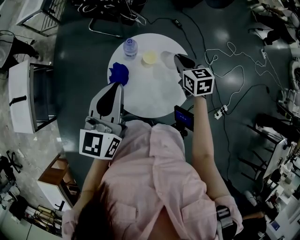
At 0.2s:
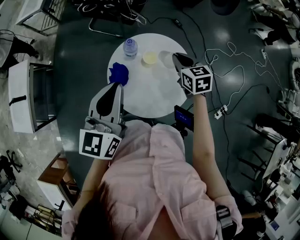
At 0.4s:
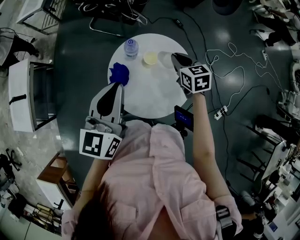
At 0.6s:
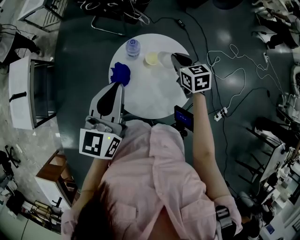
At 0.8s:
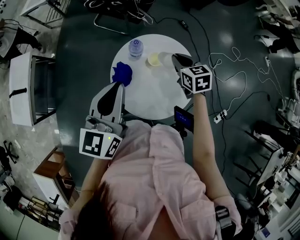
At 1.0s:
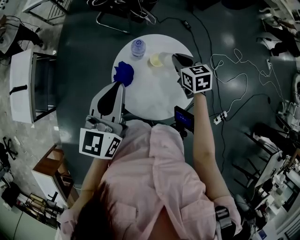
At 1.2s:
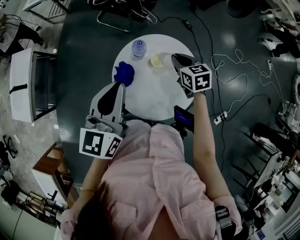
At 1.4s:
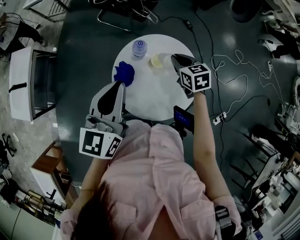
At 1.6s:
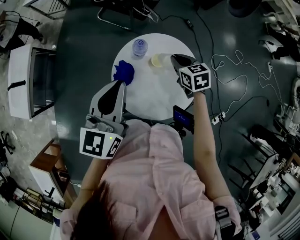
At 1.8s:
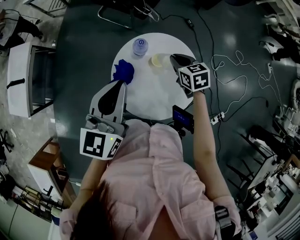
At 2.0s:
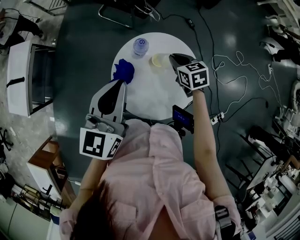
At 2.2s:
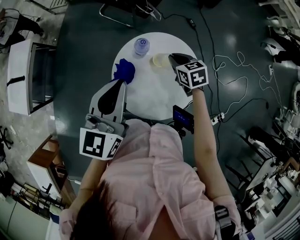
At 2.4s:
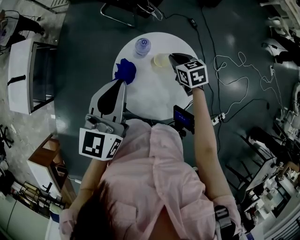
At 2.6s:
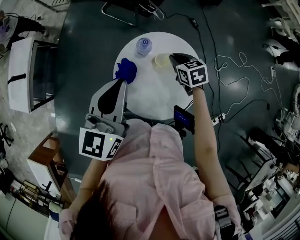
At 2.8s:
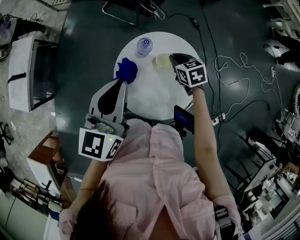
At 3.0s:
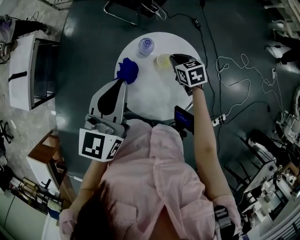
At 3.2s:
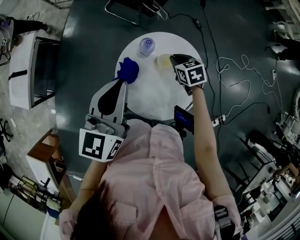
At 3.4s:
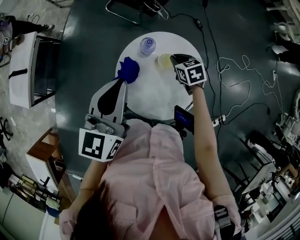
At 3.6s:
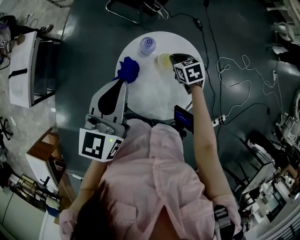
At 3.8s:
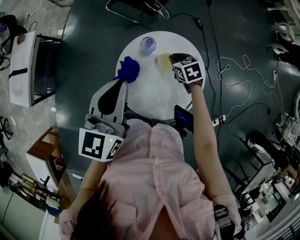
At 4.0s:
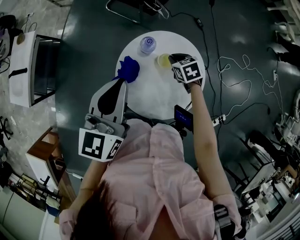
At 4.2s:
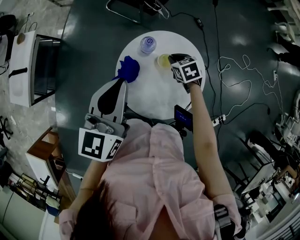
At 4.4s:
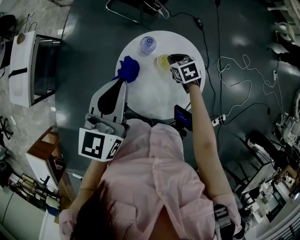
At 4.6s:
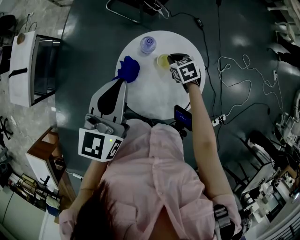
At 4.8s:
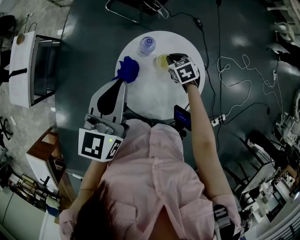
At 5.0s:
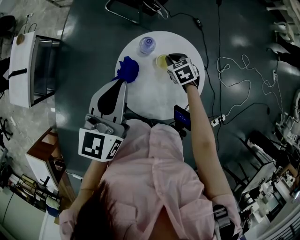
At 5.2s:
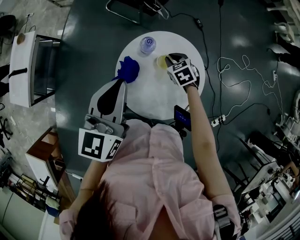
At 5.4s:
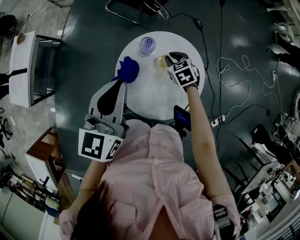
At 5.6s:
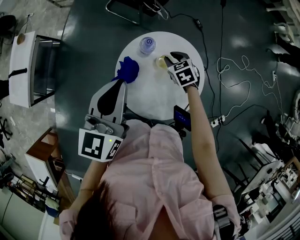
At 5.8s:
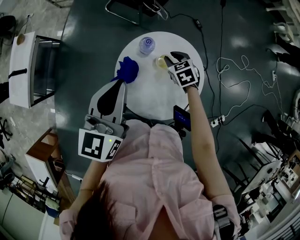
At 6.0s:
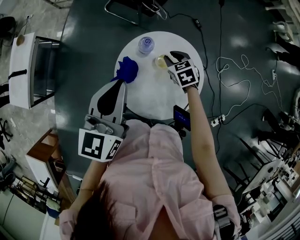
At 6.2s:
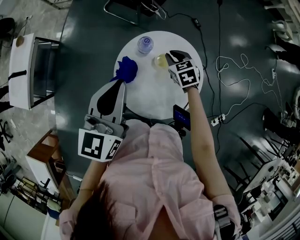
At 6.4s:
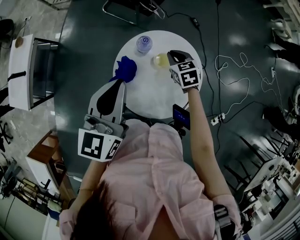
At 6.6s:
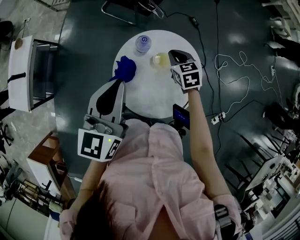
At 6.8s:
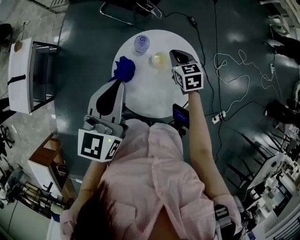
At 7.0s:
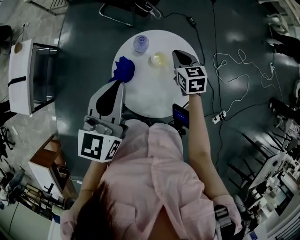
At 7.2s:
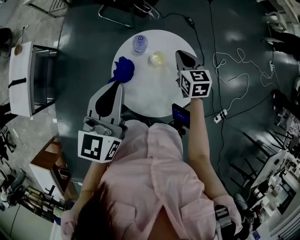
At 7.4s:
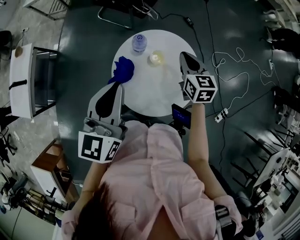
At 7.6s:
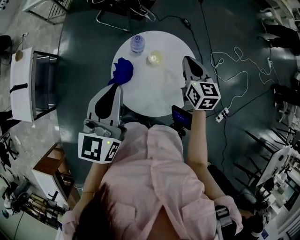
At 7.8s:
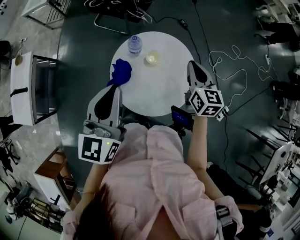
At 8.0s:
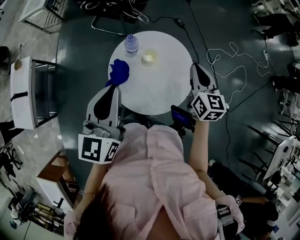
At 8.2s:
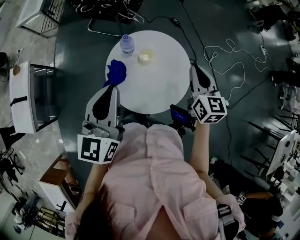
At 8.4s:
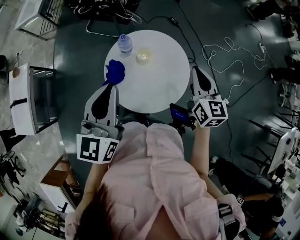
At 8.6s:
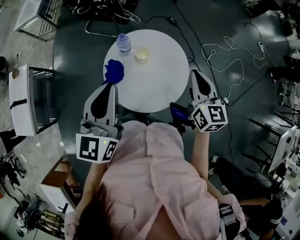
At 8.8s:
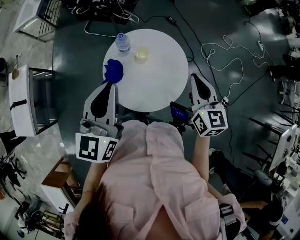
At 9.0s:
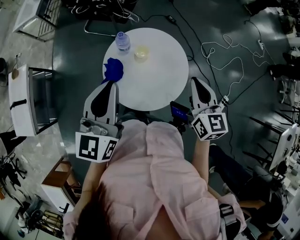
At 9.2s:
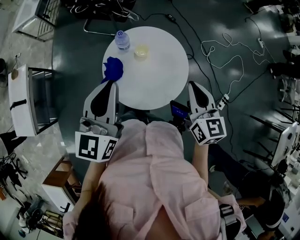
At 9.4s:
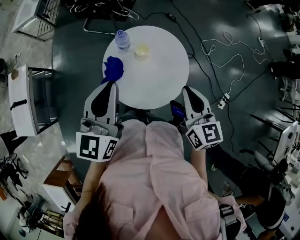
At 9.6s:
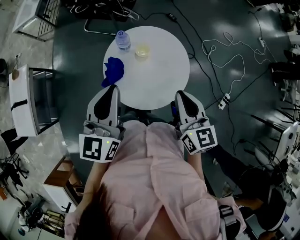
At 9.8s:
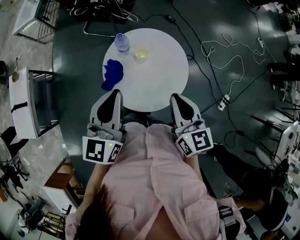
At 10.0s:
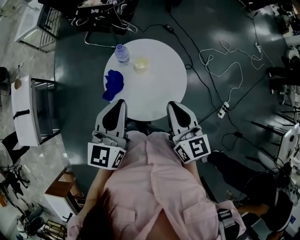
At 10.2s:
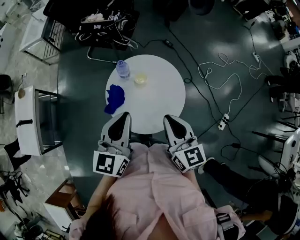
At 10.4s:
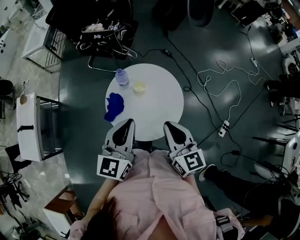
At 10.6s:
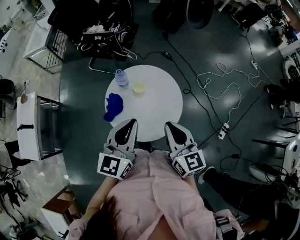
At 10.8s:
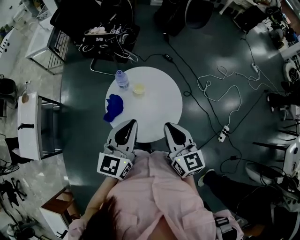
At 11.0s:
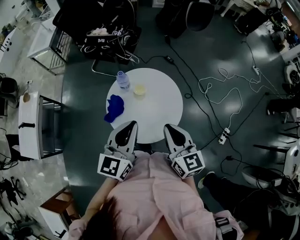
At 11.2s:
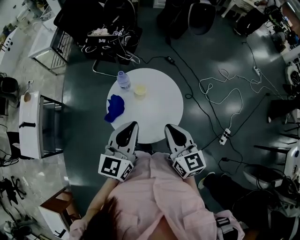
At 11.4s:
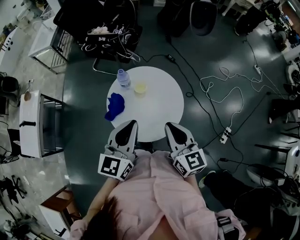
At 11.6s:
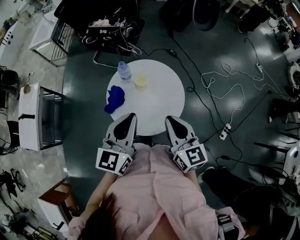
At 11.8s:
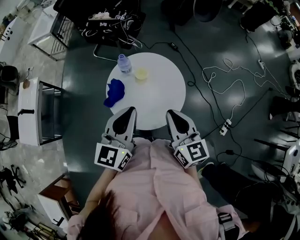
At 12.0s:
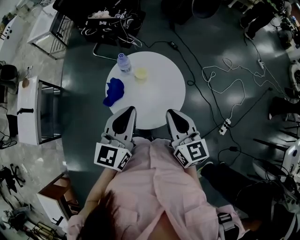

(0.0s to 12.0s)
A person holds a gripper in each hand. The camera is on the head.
0.0s - 1.6s: The right gripper heads downward, covering approximately 5 cm.
1.6s - 3.0s: The right gripper changes place by approximately 5 cm.
3.0s - 6.0s: The grippers move only a little.
6.0s - 7.6s: The right gripper moves upward, to the right and backward, about 20 cm, and swivels roughly 40 degrees.
7.6s - 9.0s: The right gripper travels backward, upward and to the right by some 15 cm.
9.0s - 10.4s: The left gripper moves to the right, about 5 cm. Meanwhile the right gripper is displaced to the left and backward by roughly 10 cm.
10.4s - 12.0s: The grippers stay close to where they were, moving slightly.

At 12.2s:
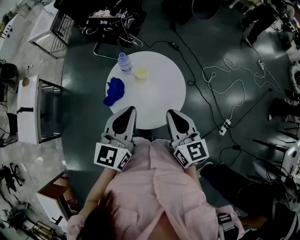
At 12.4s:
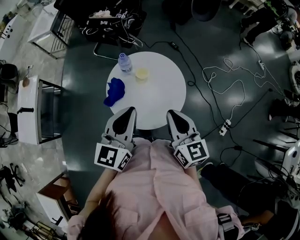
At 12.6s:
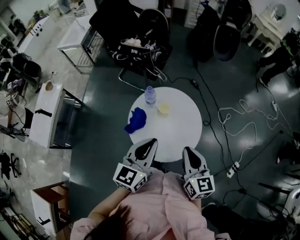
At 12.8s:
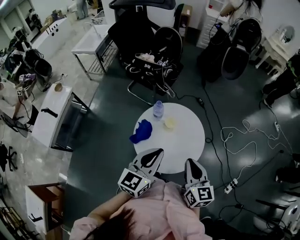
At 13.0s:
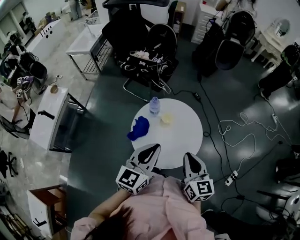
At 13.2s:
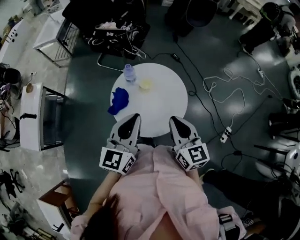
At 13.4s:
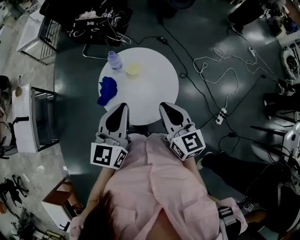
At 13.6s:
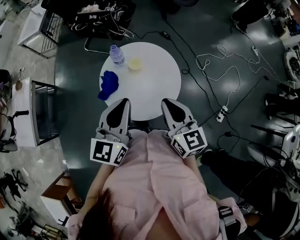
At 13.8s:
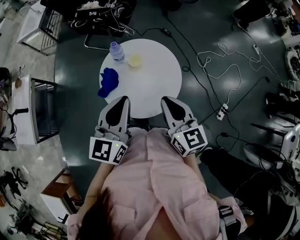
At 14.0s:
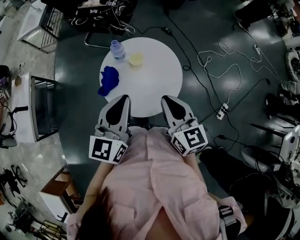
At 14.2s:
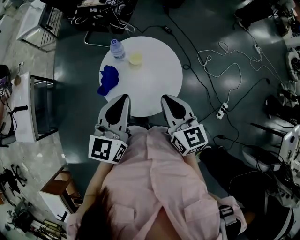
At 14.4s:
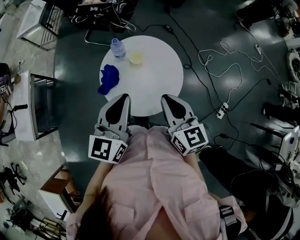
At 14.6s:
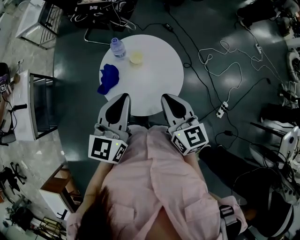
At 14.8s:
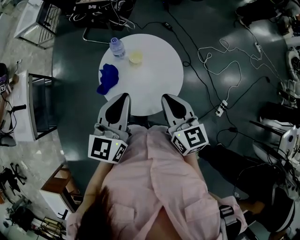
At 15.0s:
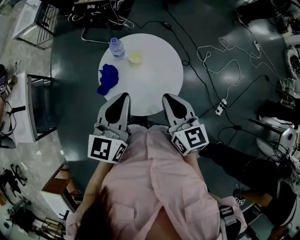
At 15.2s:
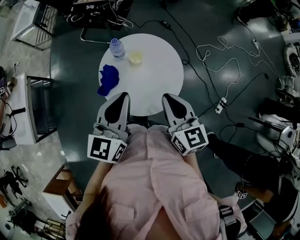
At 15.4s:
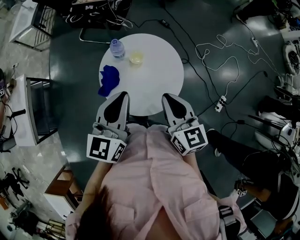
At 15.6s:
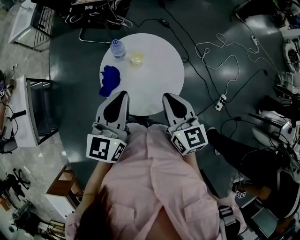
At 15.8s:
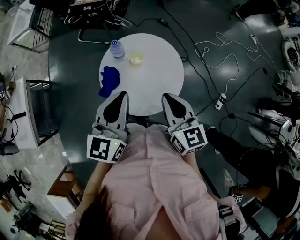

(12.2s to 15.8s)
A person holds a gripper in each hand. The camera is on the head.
12.2s - 15.8s: The grippers move only a little.

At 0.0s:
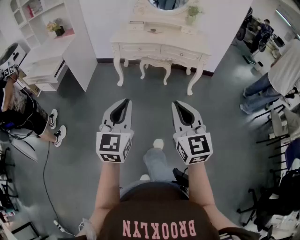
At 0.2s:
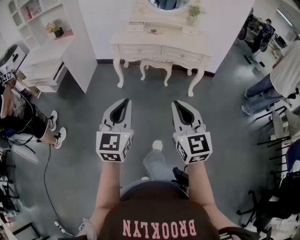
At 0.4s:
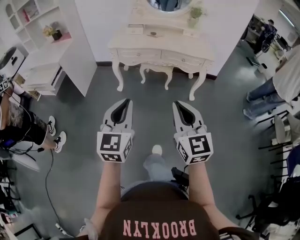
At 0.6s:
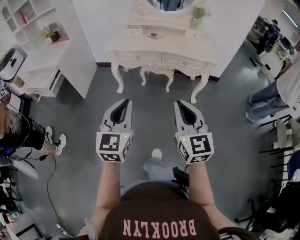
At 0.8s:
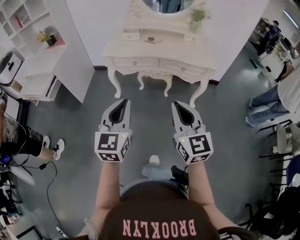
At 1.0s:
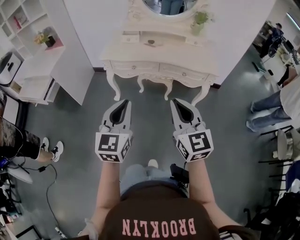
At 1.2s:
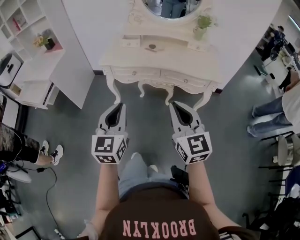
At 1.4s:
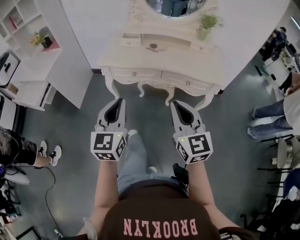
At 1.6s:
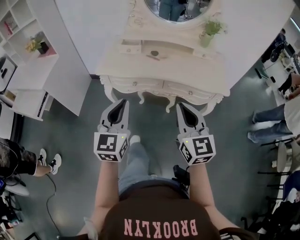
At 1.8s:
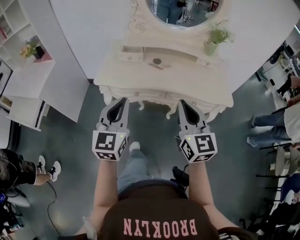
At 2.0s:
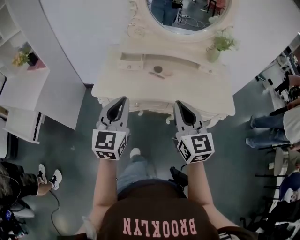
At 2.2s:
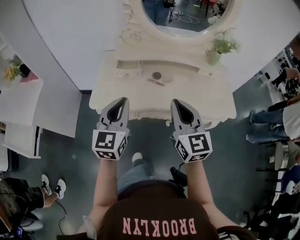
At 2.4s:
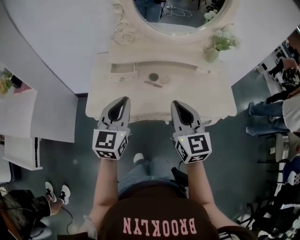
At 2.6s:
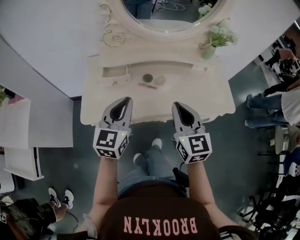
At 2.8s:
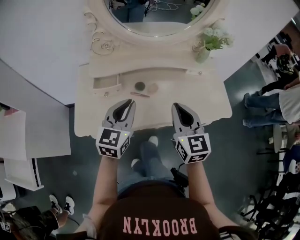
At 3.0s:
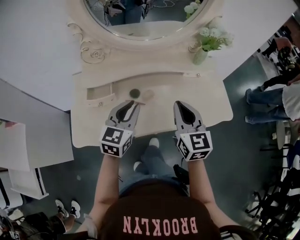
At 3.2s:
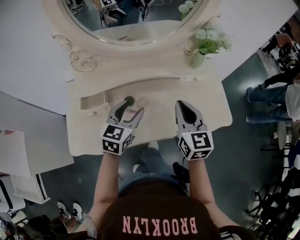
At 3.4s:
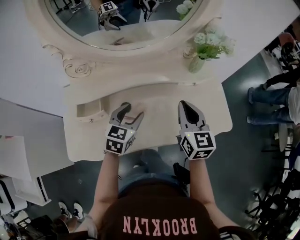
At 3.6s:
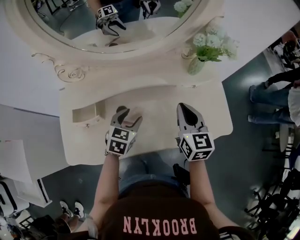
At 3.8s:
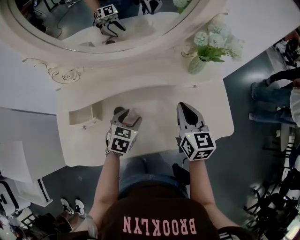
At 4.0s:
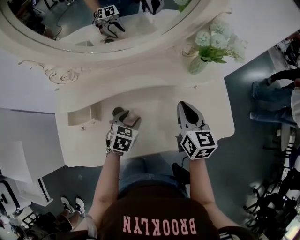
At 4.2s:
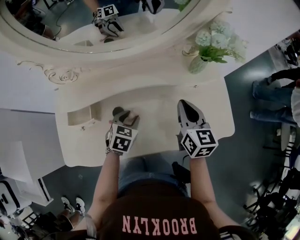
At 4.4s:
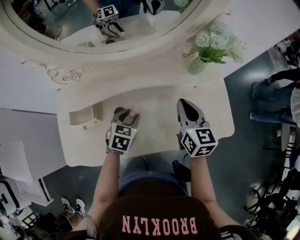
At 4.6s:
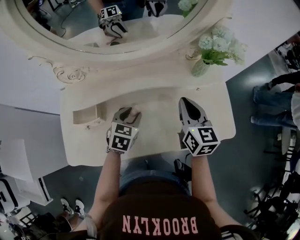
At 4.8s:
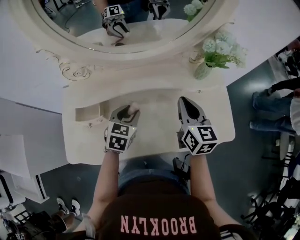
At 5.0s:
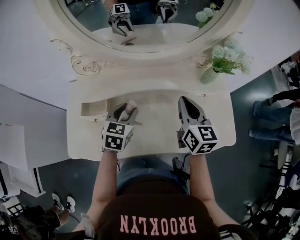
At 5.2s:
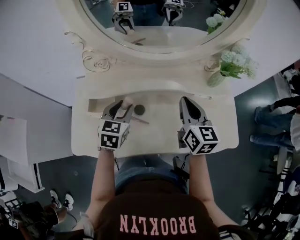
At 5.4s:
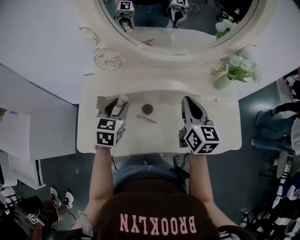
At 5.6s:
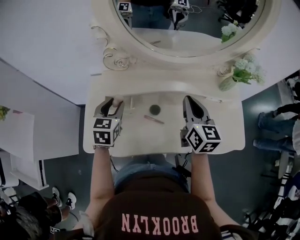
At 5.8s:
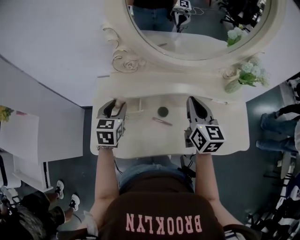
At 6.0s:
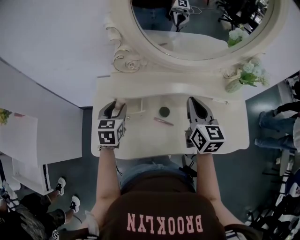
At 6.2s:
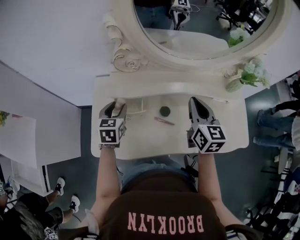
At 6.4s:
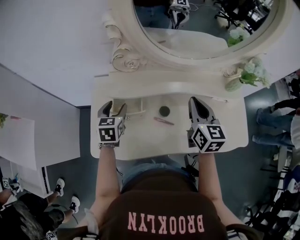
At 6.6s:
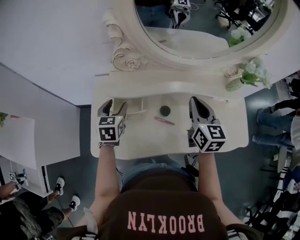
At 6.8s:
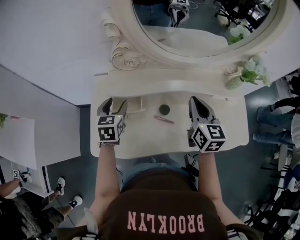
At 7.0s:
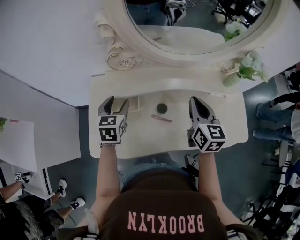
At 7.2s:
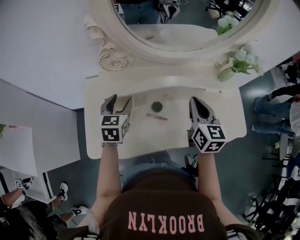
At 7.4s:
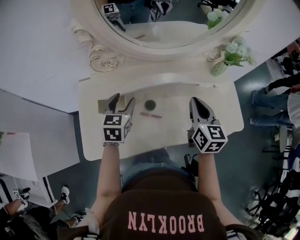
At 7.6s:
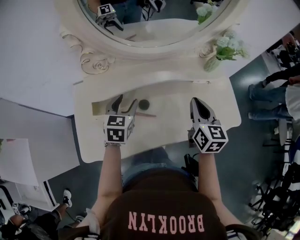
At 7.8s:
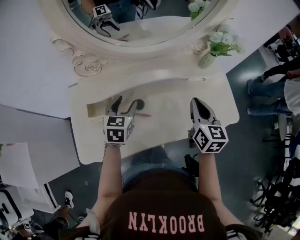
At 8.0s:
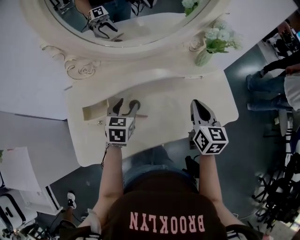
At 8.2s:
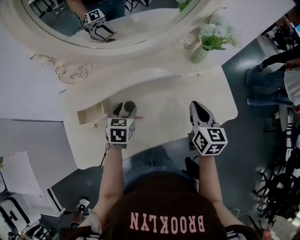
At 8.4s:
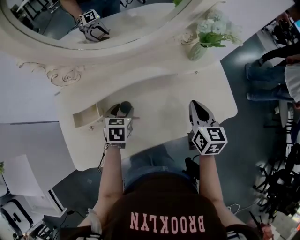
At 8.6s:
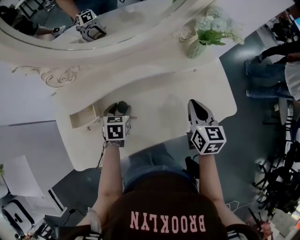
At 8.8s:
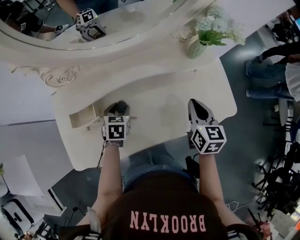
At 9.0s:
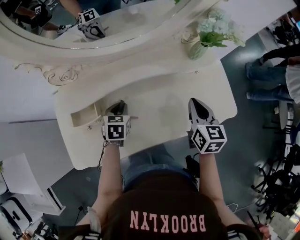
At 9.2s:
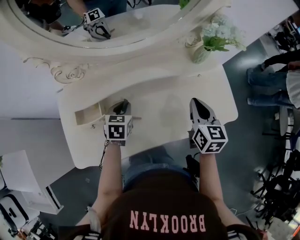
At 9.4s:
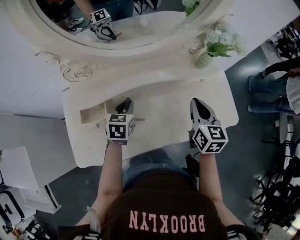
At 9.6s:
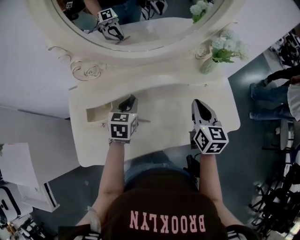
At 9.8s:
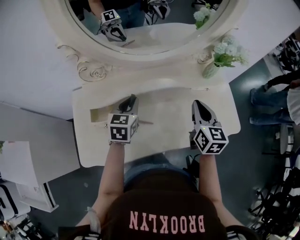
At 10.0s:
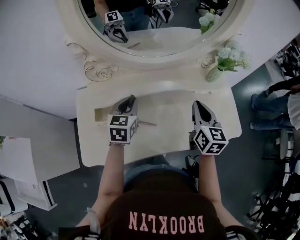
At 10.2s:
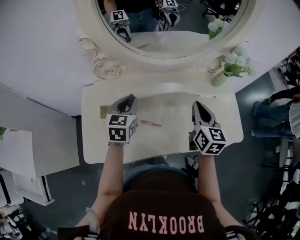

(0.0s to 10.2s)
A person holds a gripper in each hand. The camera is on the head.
0.0s - 1.4s: Both grippers are carried forward, some 40 cm.
1.4s - 3.0s: The two grippers travel together, approximately 50 cm. The right gripper swivels some 30 degrees. Meanwhile the left gripper changes its angle by about 40 degrees.
3.0s - 4.4s: The left gripper heads downward and forward, covering about 20 cm, tips its fingers downward by roughly 30 degrees, and opens. The right gripper travels forward, to the right and downward by approximately 20 cm.
4.4s - 5.8s: The left gripper is displaced to the left and upward by roughly 30 cm, and rotates roughly 30 degrees. The right gripper heads to the left and upward, covering about 20 cm.
5.8s - 7.2s: The left gripper shifts by about 5 cm.
7.2s - 8.8s: Both grippers travel together to the right and downward, some 20 cm. The left gripper changes its angle by about 20 degrees.
8.8s - 10.2s: The right gripper goes roughly 15 cm to the left and upward. The left gripper heads upward and to the left, covering roughly 20 cm, swivels approximately 30 degrees, and closes.
